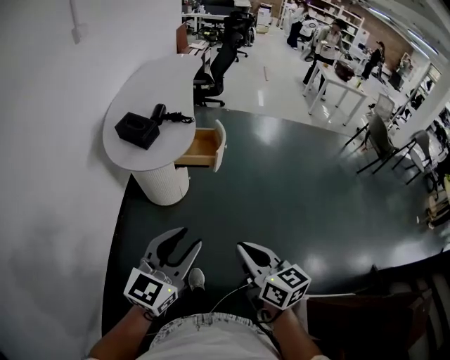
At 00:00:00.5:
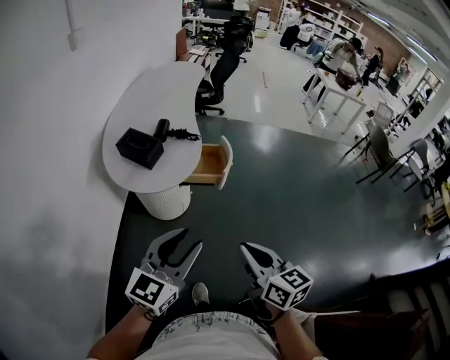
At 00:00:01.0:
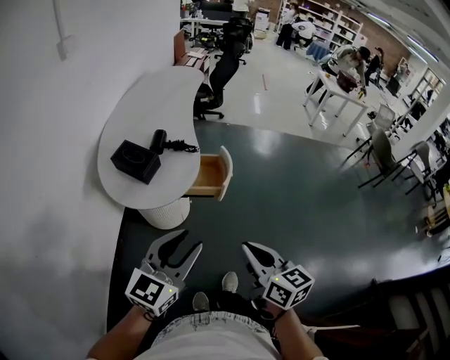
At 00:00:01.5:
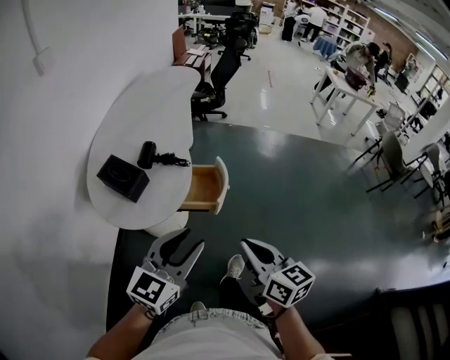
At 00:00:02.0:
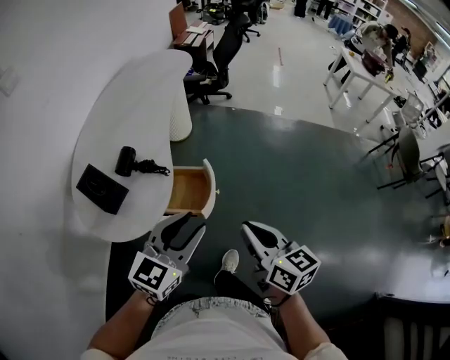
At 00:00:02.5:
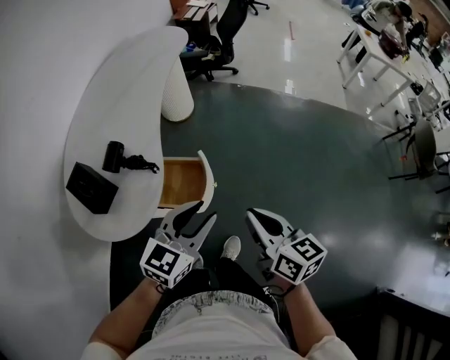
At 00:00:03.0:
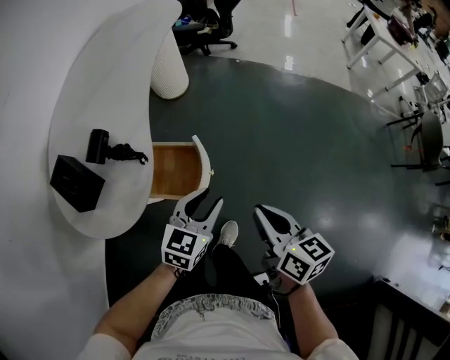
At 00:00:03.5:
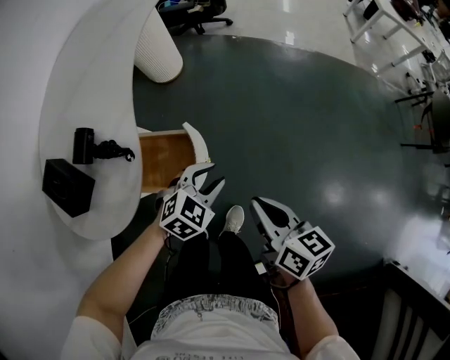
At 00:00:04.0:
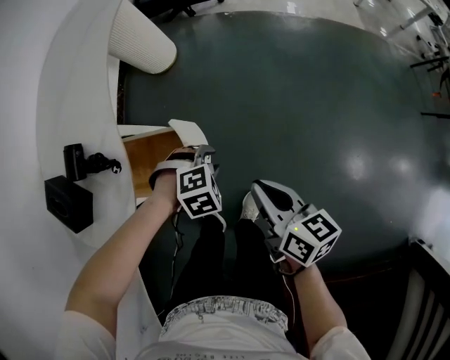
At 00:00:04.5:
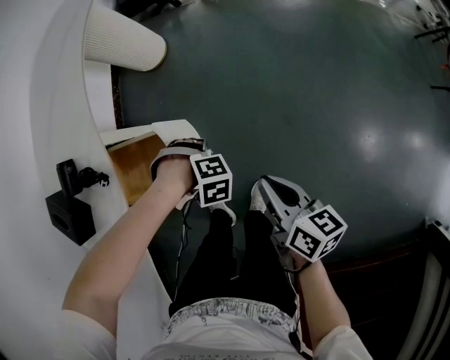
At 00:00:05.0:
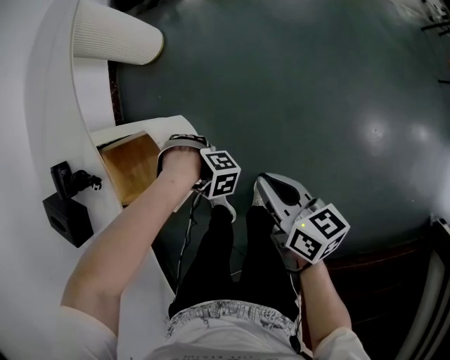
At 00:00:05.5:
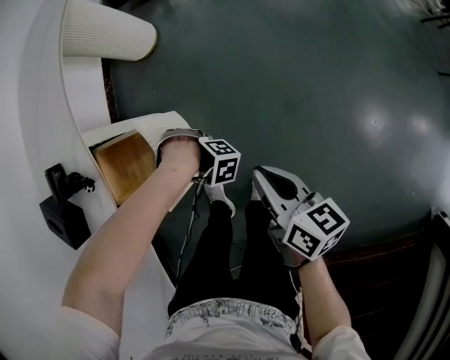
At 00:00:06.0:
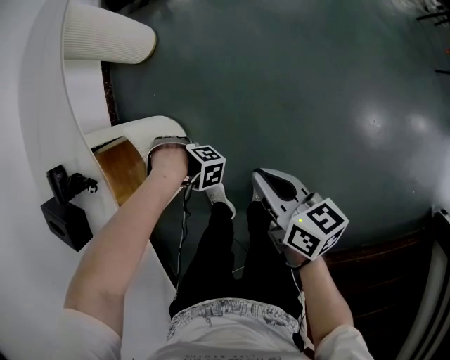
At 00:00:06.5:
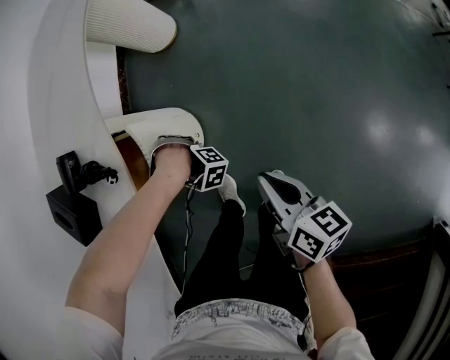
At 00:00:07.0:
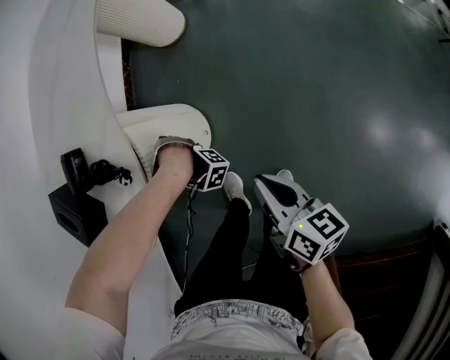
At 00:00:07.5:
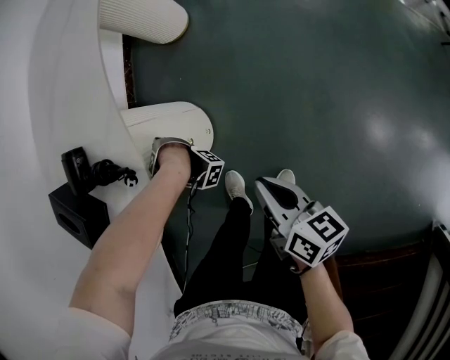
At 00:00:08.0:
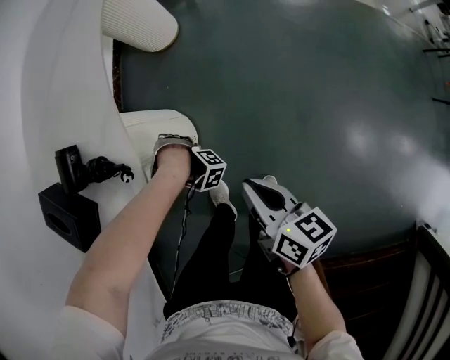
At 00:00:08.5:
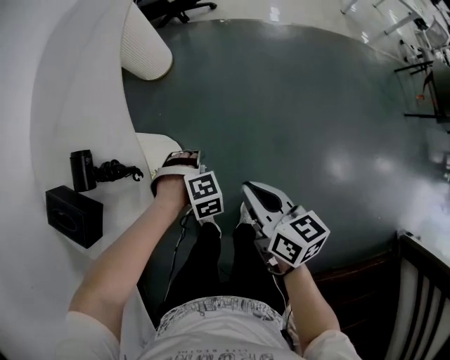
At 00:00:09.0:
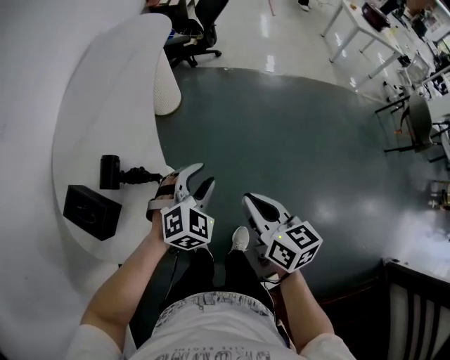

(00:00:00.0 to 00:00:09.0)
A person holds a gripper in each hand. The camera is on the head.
00:00:00.0 - 00:00:02.0: The pair of grippers is taken forward, approximately 50 cm.
00:00:02.0 - 00:00:04.5: The left gripper travels downward by roughly 40 cm, and tips its fingers downward by about 70 degrees. The right gripper goes approximately 25 cm downward, and rotates some 30 degrees.
00:00:04.5 - 00:00:07.0: The right gripper ends up about 15 cm from where it was. Meanwhile the left gripper moves some 25 cm, and angles its fingers upward, by some 40 degrees.
00:00:07.0 - 00:00:09.0: The right gripper is displaced upward by roughly 20 cm, and swivels roughly 20 degrees. The left gripper goes approximately 35 cm upward, and changes its angle by some 100 degrees.

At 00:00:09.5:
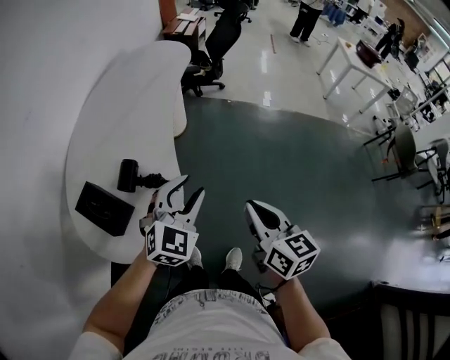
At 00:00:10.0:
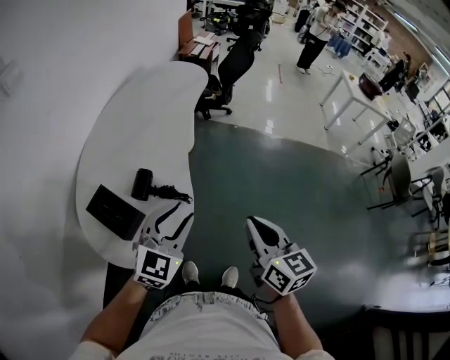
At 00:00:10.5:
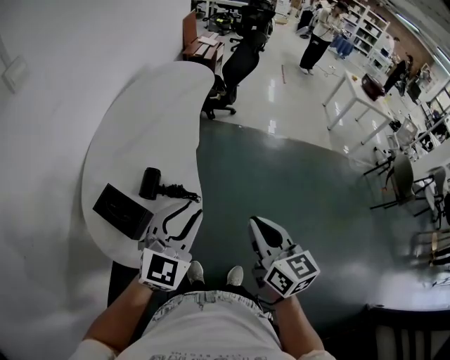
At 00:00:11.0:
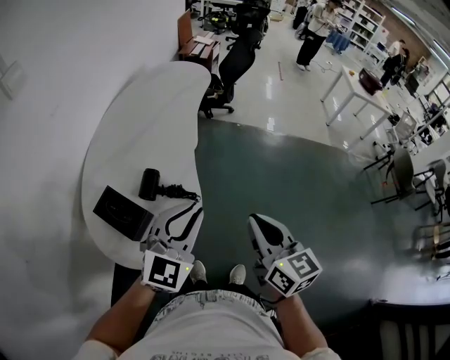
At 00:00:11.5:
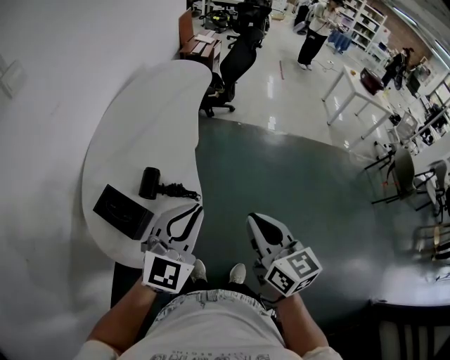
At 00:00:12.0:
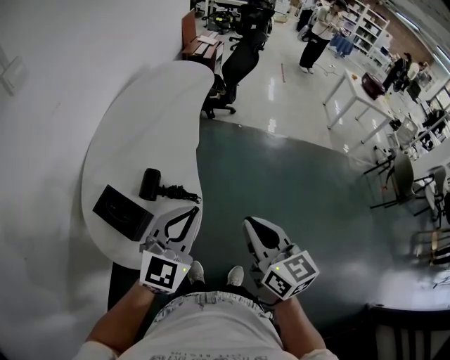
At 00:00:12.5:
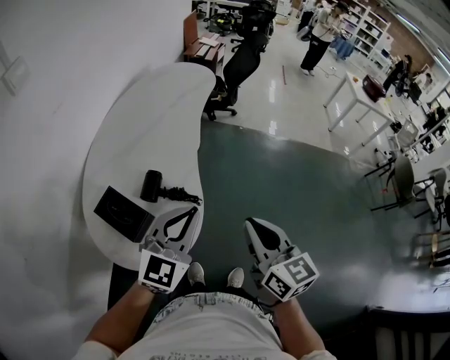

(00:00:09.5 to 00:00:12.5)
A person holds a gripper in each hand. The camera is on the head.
00:00:09.5 - 00:00:11.0: The left gripper shifts approximately 10 cm upward, to the left and backward, and closes its fingers. Meanwhile the right gripper travels to the left and upward by some 10 cm.
00:00:11.0 - 00:00:12.5: There are only small adjustments of the grippers.

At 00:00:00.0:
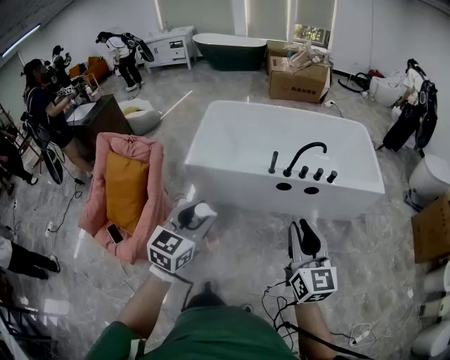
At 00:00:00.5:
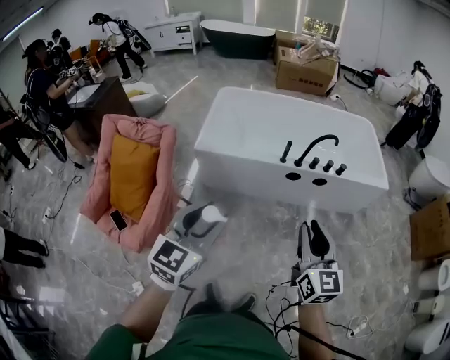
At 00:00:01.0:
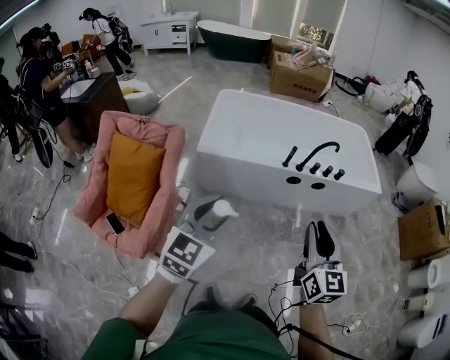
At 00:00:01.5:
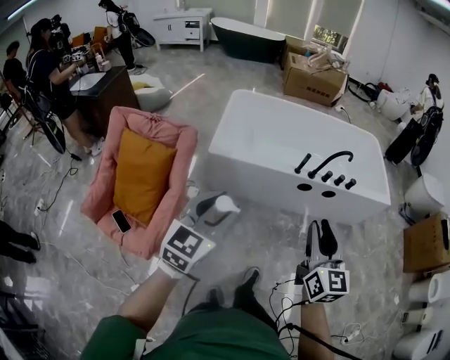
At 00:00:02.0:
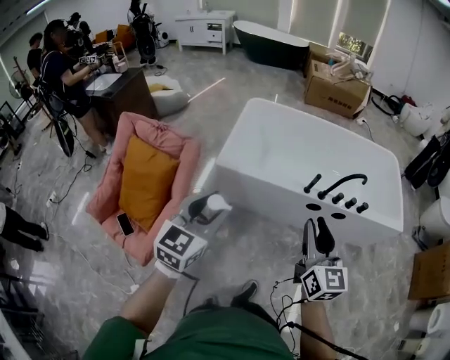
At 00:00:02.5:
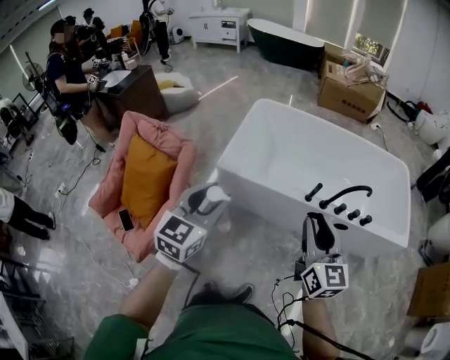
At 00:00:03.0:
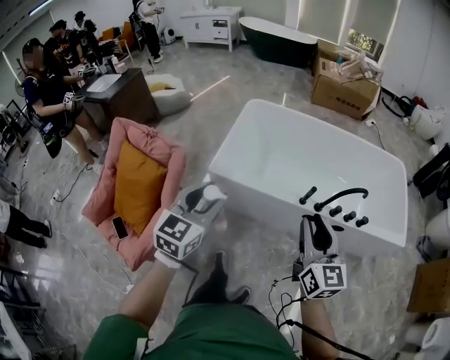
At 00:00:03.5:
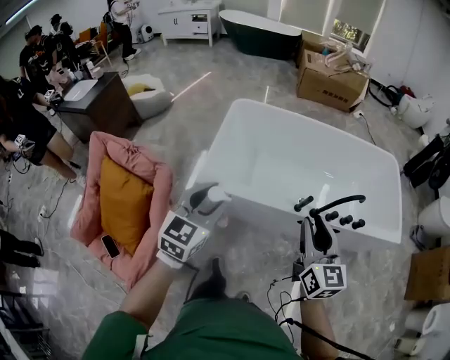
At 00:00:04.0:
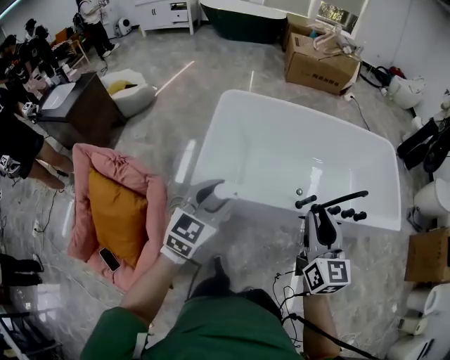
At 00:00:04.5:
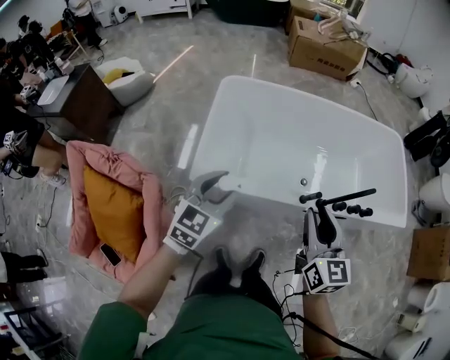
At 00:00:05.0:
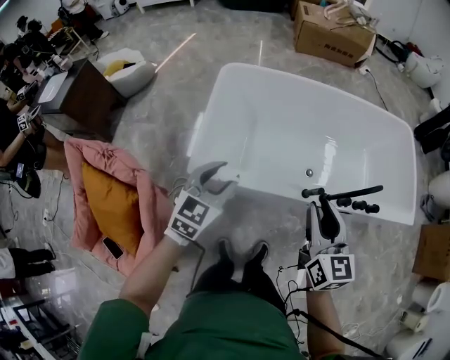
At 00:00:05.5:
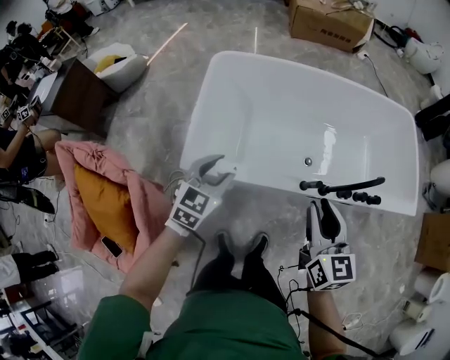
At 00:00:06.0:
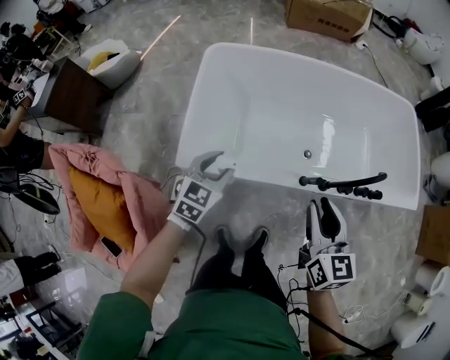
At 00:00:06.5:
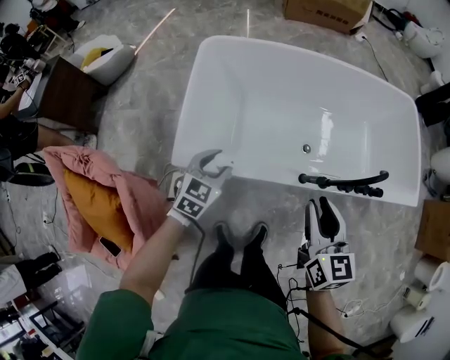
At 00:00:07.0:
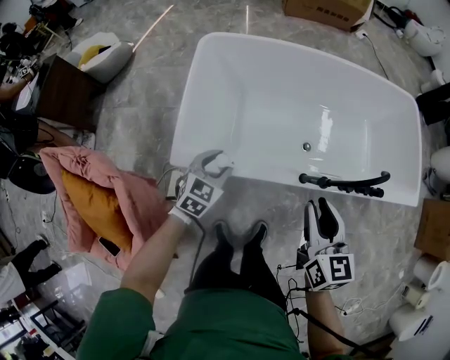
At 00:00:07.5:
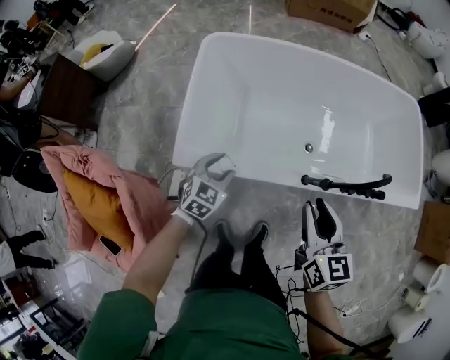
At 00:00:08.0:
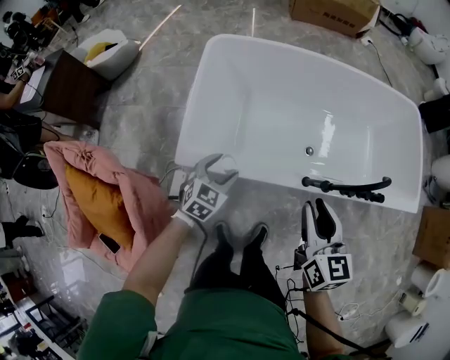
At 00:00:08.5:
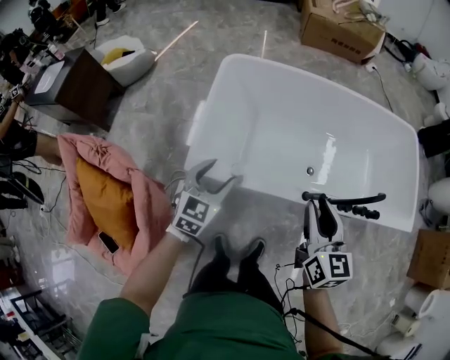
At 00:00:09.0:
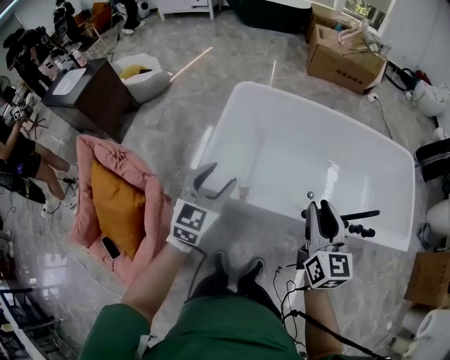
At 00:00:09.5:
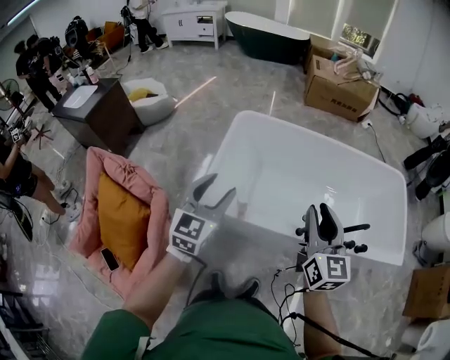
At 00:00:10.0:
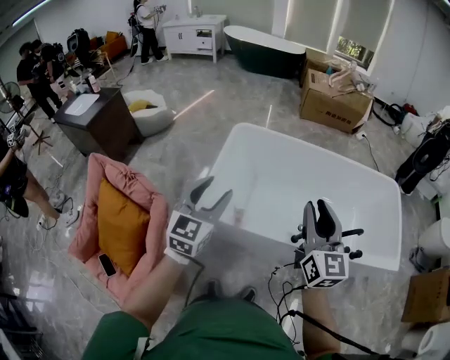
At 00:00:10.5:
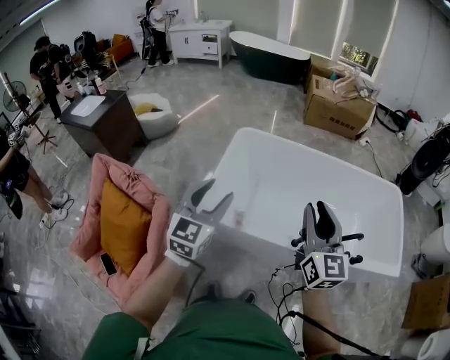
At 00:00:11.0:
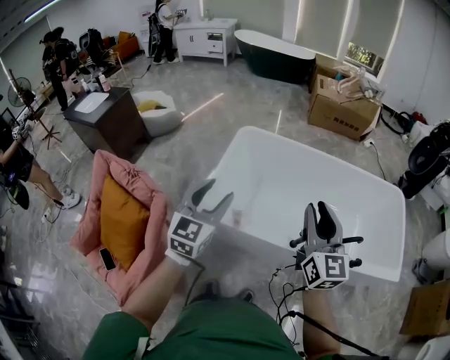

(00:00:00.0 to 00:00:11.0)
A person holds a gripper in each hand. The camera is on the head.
00:00:00.0 - 00:00:02.0: Both grippers travel together to the left and forward, about 25 cm.
00:00:02.0 - 00:00:03.5: Both grippers travel together forward, about 25 cm.
00:00:03.5 - 00:00:05.5: The grippers both shift forward and downward by roughly 25 cm.
00:00:05.5 - 00:00:07.5: The right gripper heads downward, covering about 5 cm; the left gripper moves downward, approximately 15 cm.
00:00:07.5 - 00:00:09.0: The right gripper moves upward, approximately 15 cm. The left gripper goes approximately 25 cm upward, and swivels about 30 degrees.
00:00:09.0 - 00:00:11.0: The left gripper is displaced upward and backward by some 15 cm. Meanwhile the right gripper is displaced upward by roughly 15 cm.

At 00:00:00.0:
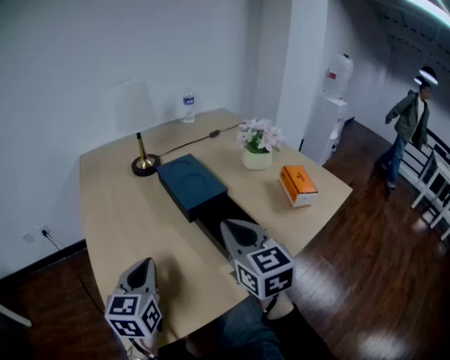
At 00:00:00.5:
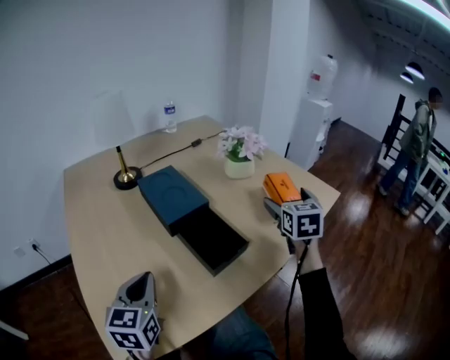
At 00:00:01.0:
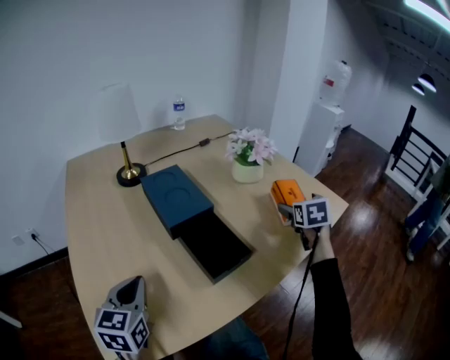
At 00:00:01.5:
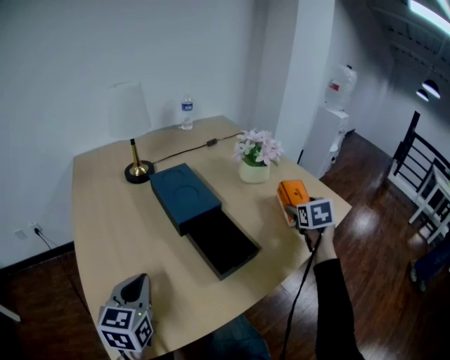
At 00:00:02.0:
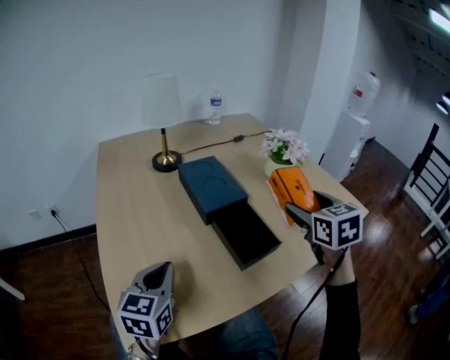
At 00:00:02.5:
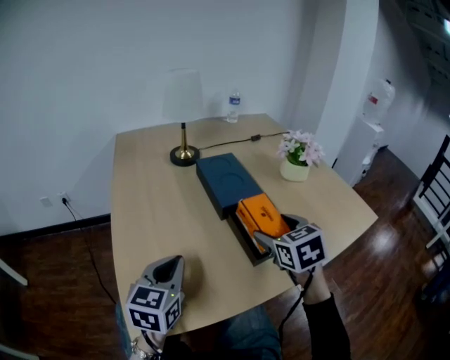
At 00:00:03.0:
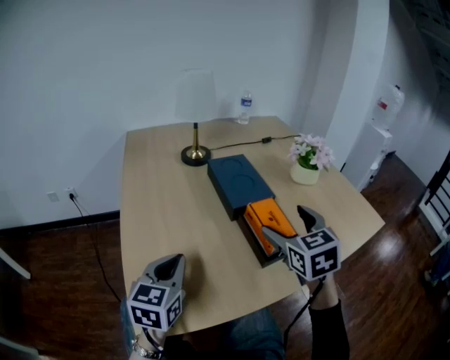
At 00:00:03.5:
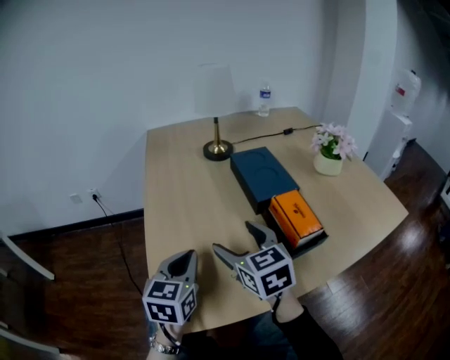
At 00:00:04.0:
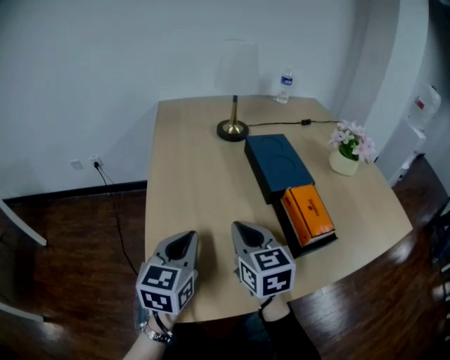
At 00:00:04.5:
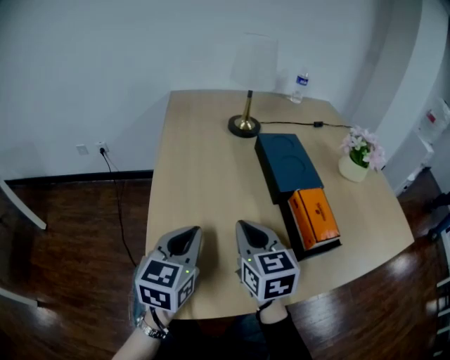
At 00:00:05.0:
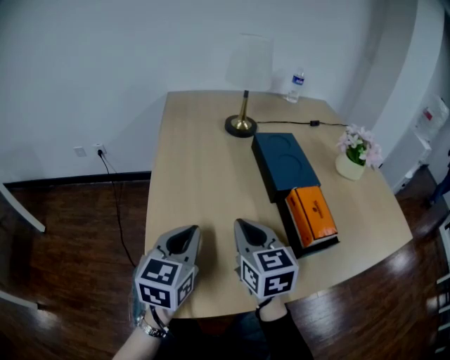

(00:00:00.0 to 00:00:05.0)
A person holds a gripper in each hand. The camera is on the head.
00:00:00.0 - 00:00:02.5: The right gripper shifts some 5 cm downward, moves about 30 cm to the right and comes back, changes its angle by about 30 degrees, and opens up.
00:00:02.5 - 00:00:05.0: The right gripper travels to the left by approximately 20 cm, rotates approximately 20 degrees, and closes, while the left gripper shifts approximately 5 cm to the left.
